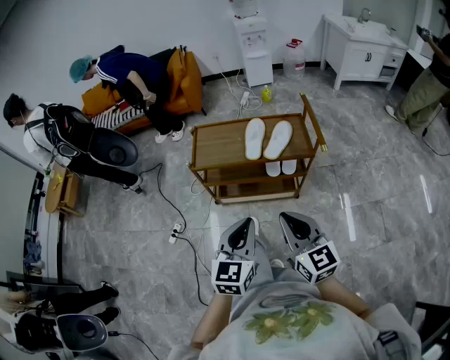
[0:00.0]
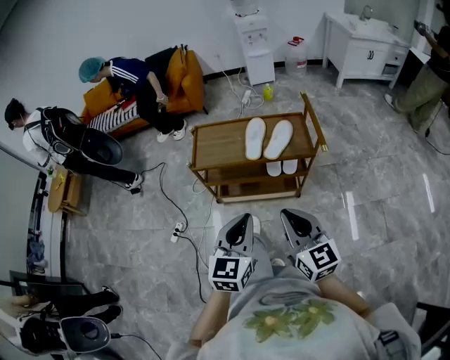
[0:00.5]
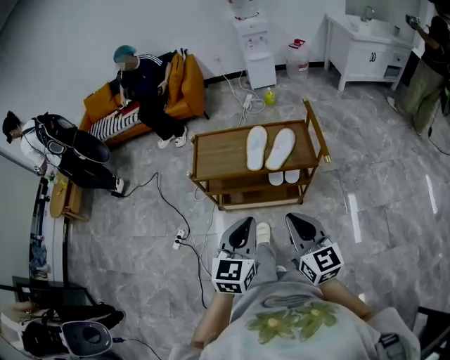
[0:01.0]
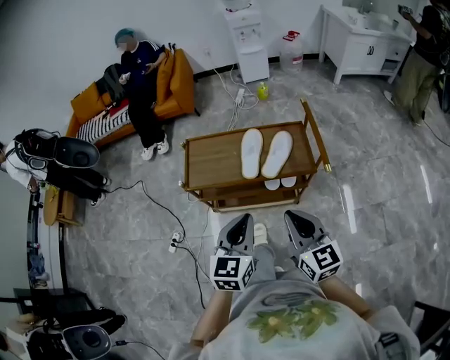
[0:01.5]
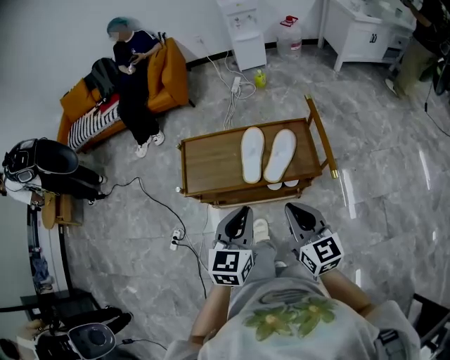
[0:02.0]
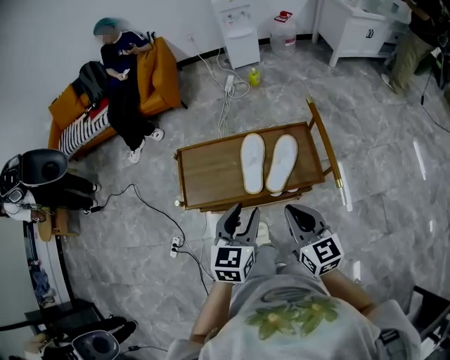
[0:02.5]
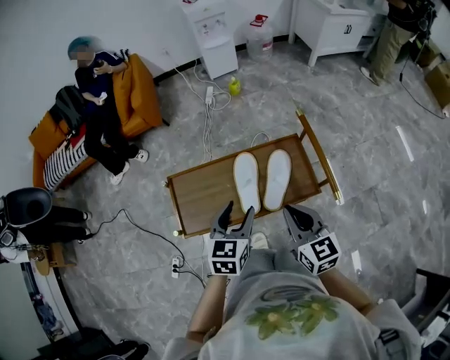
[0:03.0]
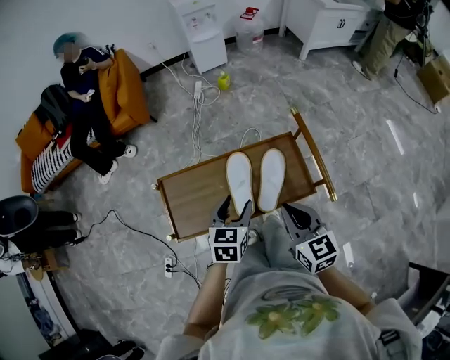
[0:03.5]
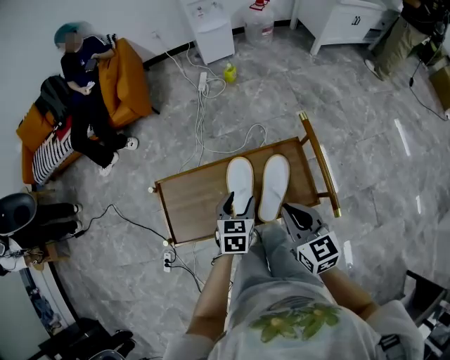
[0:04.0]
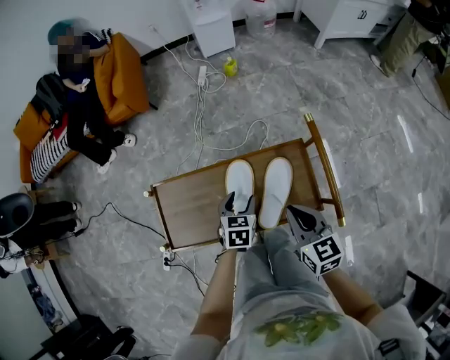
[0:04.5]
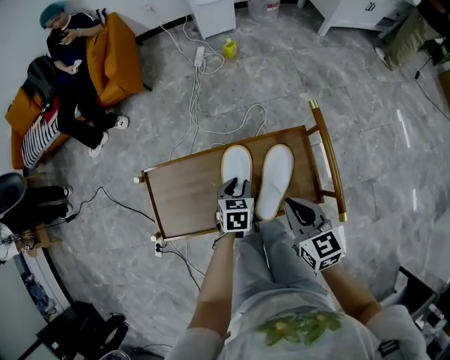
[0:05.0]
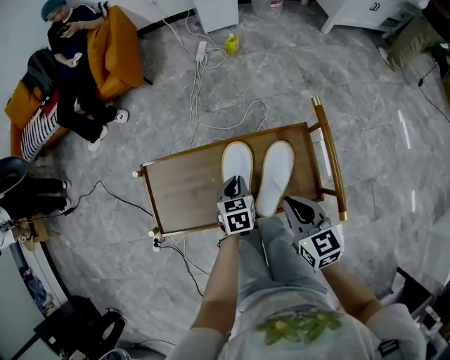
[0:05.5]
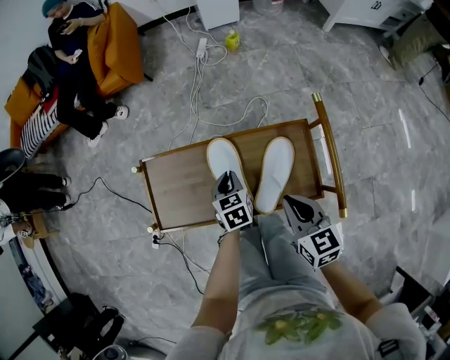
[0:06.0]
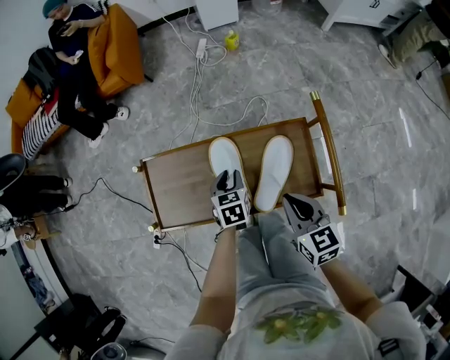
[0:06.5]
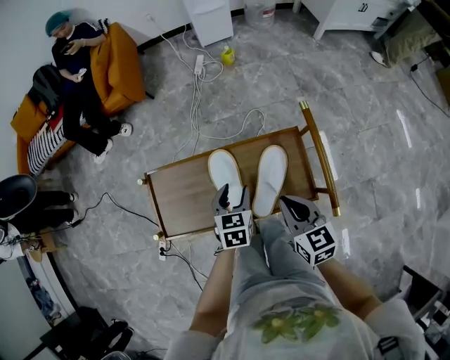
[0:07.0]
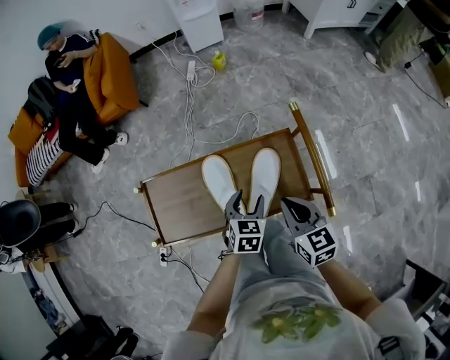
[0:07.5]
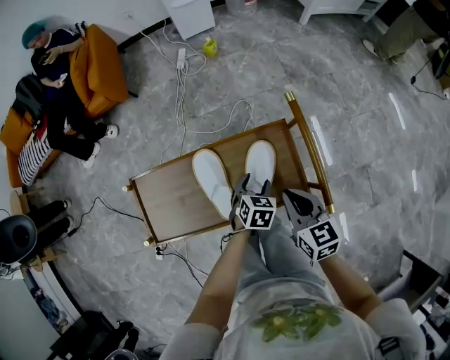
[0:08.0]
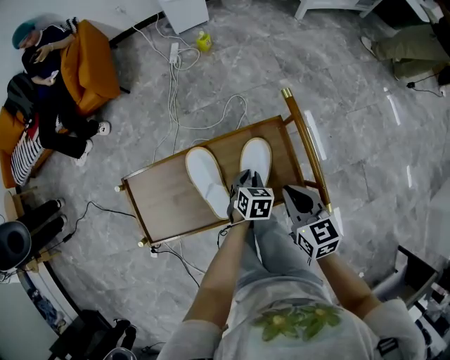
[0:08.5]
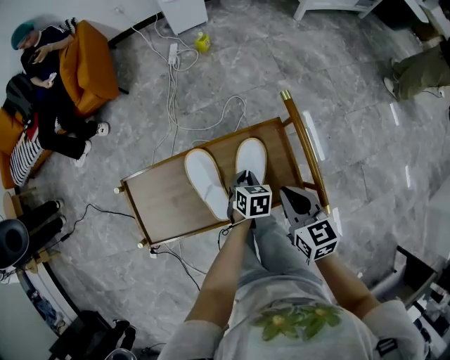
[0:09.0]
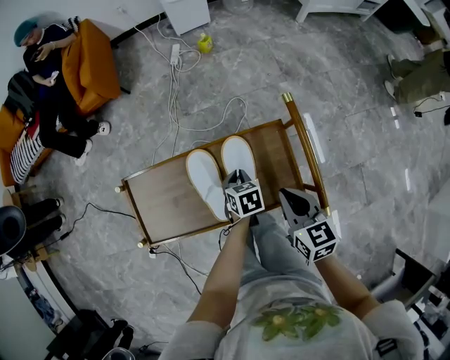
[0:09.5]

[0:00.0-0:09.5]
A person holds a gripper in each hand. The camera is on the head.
0.0 to 2.0 s: The grippers both shift forward by some 20 cm.
2.0 to 4.0 s: The left gripper shifts some 30 cm forward and downward, turns by some 20 degrees, and opens up. Meanwhile the right gripper shifts some 20 cm forward.
4.0 to 5.5 s: Both grippers travel together downward, some 10 cm. The left gripper closes.
5.5 to 7.5 s: The left gripper is displaced to the right and upward by about 10 cm, turns by about 20 degrees, and opens its fingers.
7.5 to 9.5 s: The left gripper is displaced downward and forward by about 10 cm, rotates approximately 30 degrees, and closes its fingers.

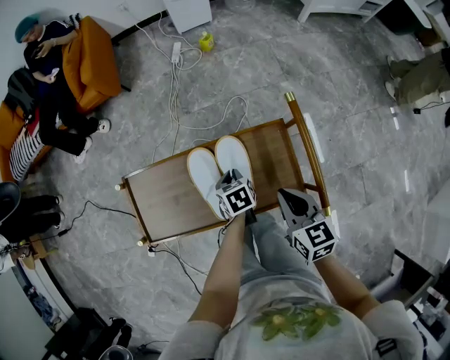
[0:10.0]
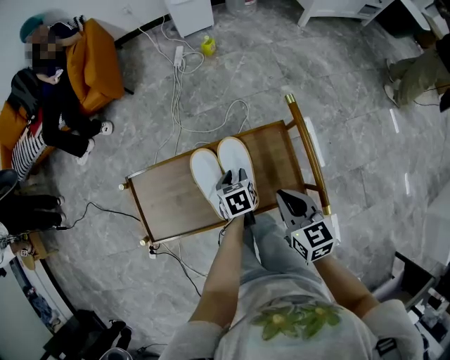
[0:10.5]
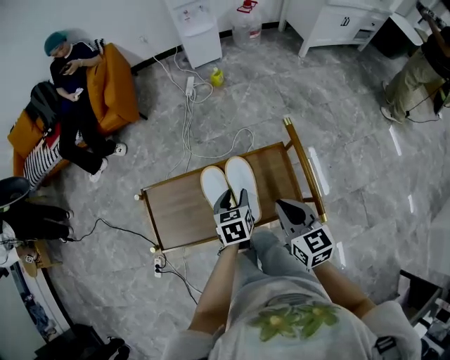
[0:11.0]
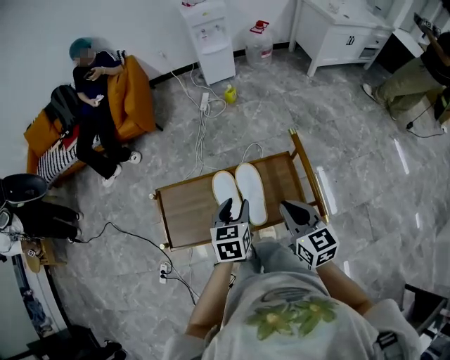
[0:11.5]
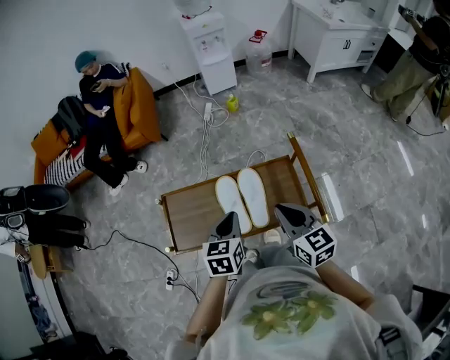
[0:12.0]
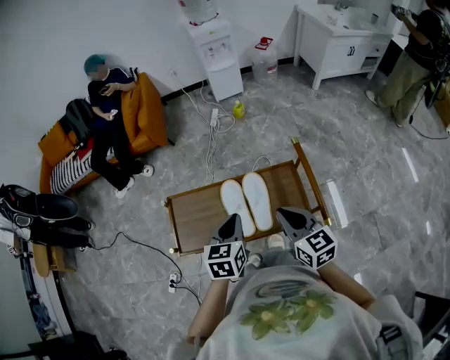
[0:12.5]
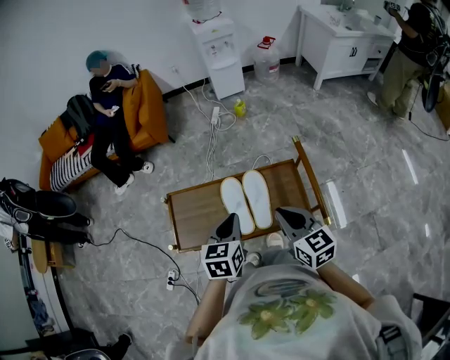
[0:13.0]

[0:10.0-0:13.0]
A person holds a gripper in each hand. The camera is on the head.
10.0 to 11.5 s: The right gripper goes roughly 10 cm upward; the left gripper shifts roughly 20 cm upward, turns by about 30 degrees, and opens up.
11.5 to 13.0 s: The left gripper goes approximately 5 cm upward, and closes.

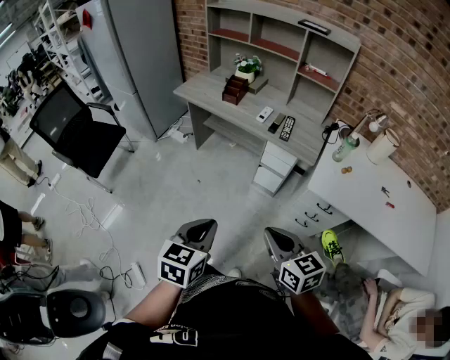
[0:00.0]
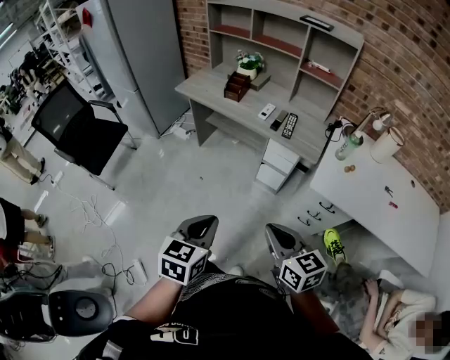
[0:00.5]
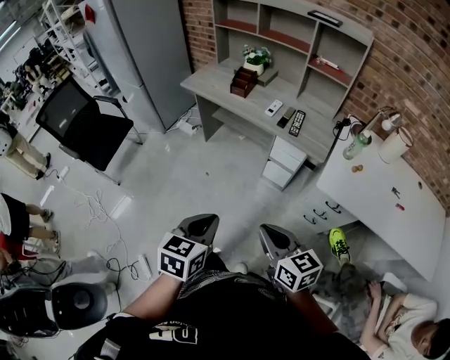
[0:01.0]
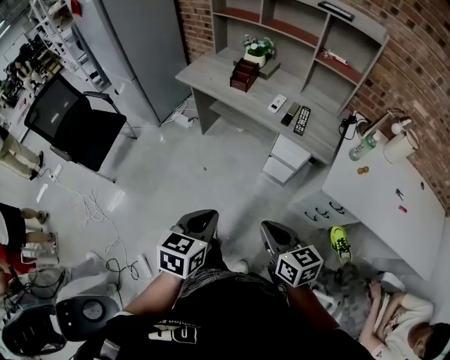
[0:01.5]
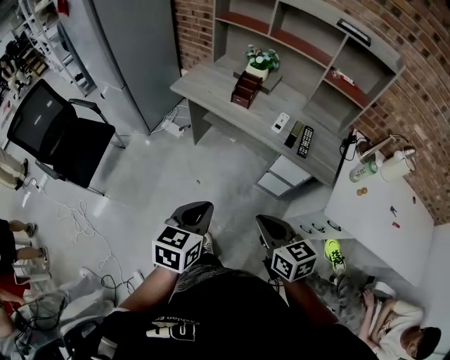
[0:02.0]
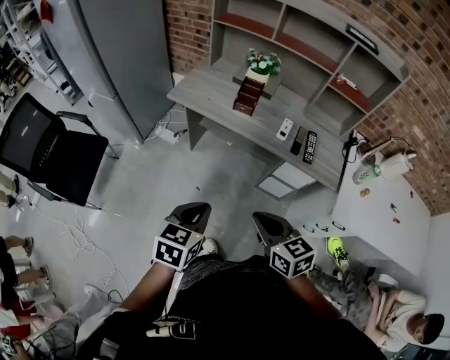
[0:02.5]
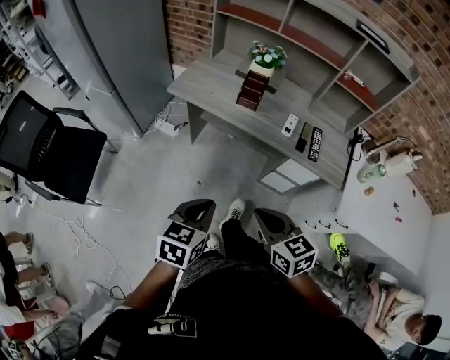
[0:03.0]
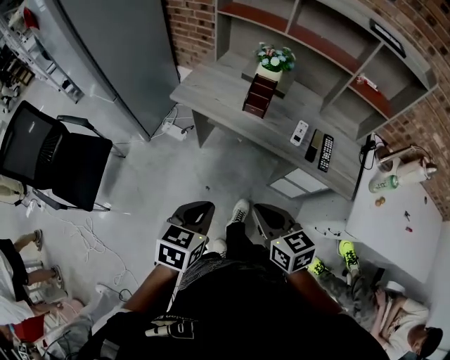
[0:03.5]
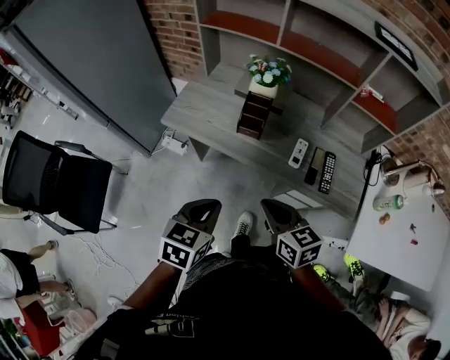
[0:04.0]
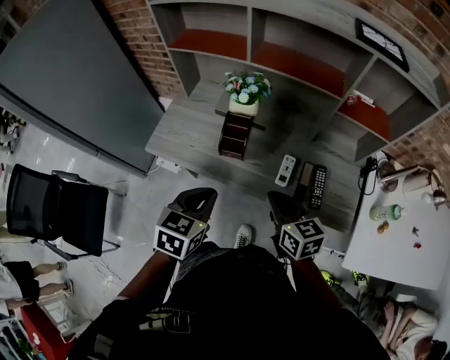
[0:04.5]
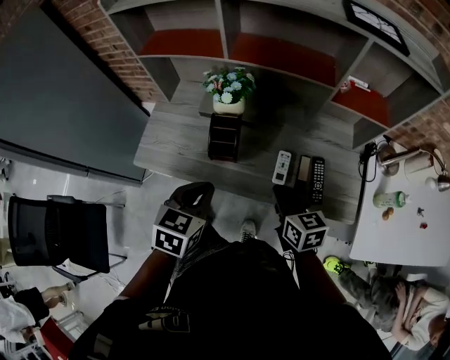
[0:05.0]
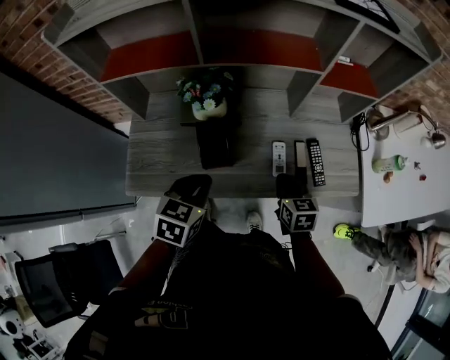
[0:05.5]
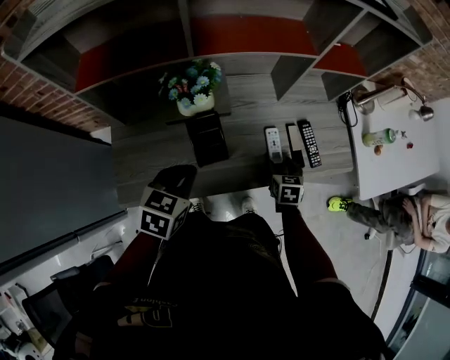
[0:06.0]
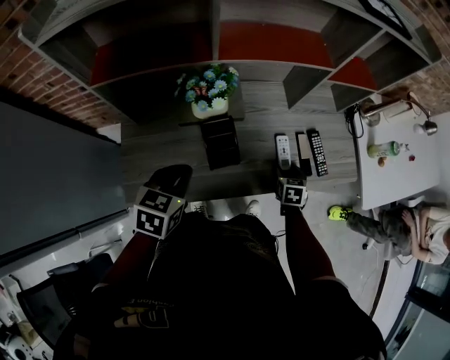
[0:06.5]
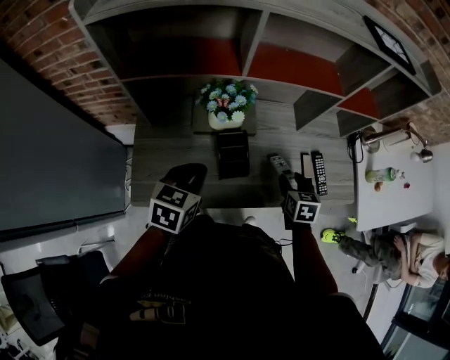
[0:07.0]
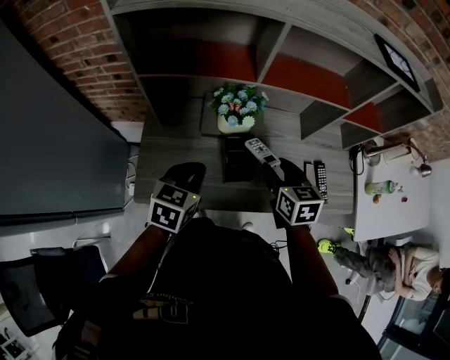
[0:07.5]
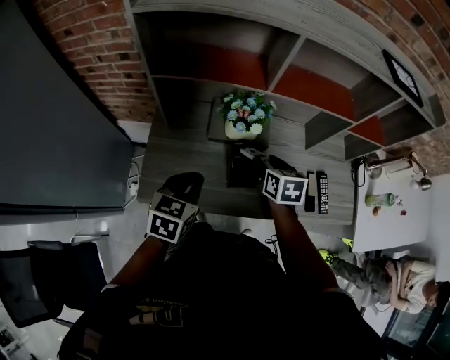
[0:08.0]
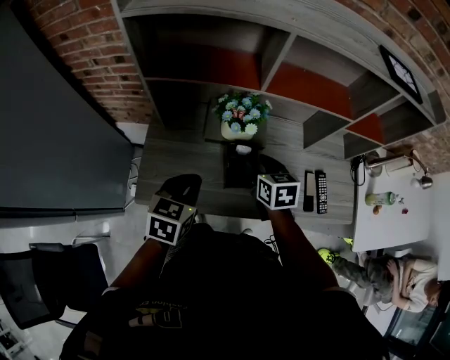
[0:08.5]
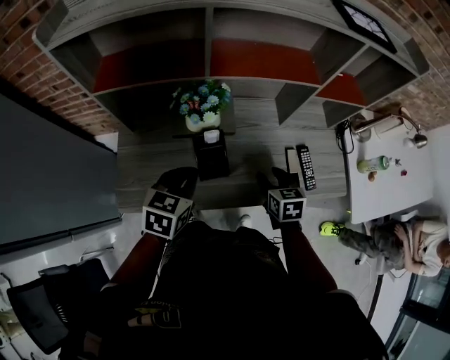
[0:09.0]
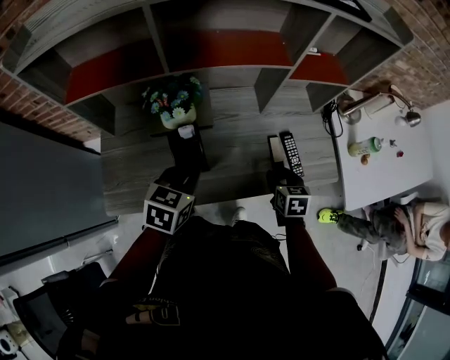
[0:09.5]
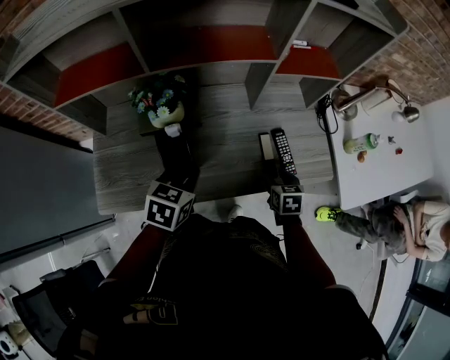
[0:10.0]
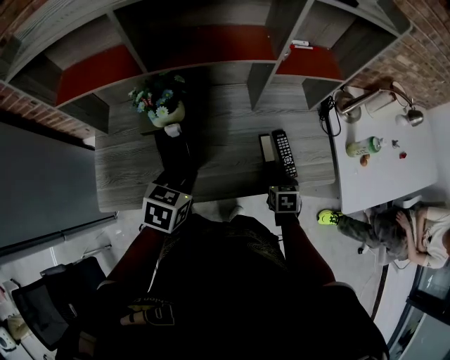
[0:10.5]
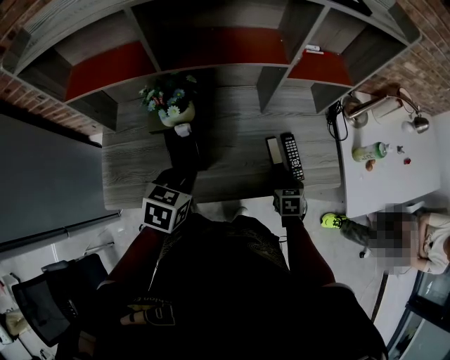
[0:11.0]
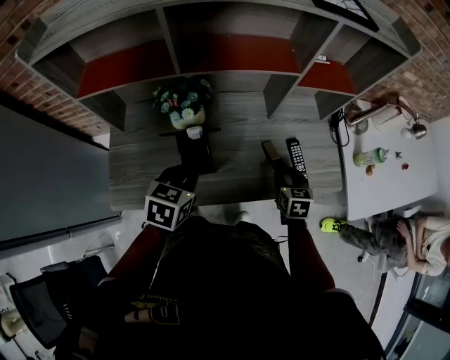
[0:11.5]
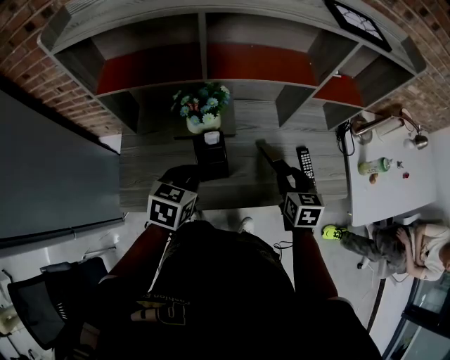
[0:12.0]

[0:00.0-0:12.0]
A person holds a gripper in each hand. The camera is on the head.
0.0 to 2.0 s: The right gripper travels forward and to the left by approximately 25 cm; the left gripper travels forward by about 20 cm.
2.0 to 4.0 s: The two grippers go approximately 25 cm forward.
4.0 to 6.0 s: The right gripper changes place by some 30 cm, rotates some 60 degrees, and opens up, while the left gripper shifts by roughly 30 cm, and changes its angle by roughly 30 degrees.
6.0 to 8.0 s: The left gripper goes about 10 cm to the left. Meanwhile the right gripper is displaced to the left and upward by roughly 25 cm.
8.0 to 10.0 s: The left gripper goes about 20 cm to the right; the right gripper heads to the right and downward, covering approximately 30 cm.
10.0 to 12.0 s: The right gripper moves upward and to the left, approximately 15 cm; the left gripper moves to the left, approximately 10 cm.

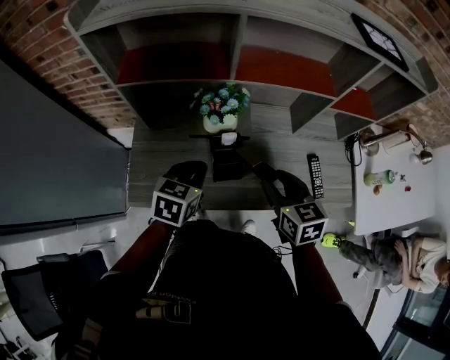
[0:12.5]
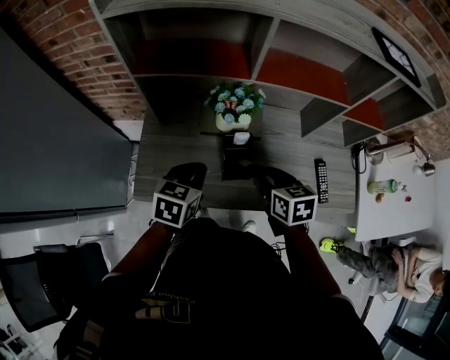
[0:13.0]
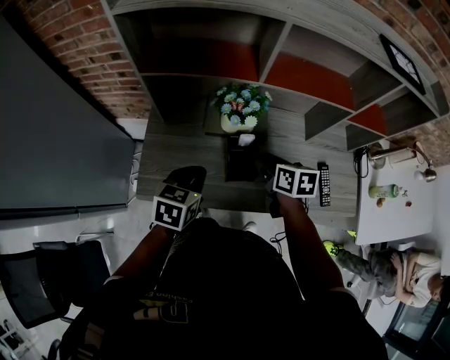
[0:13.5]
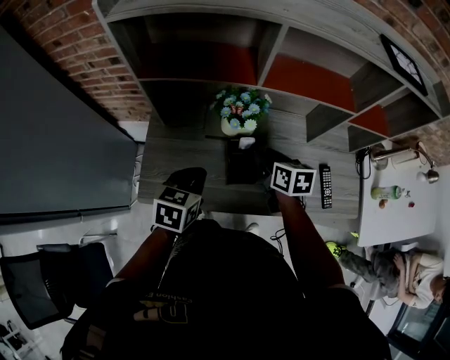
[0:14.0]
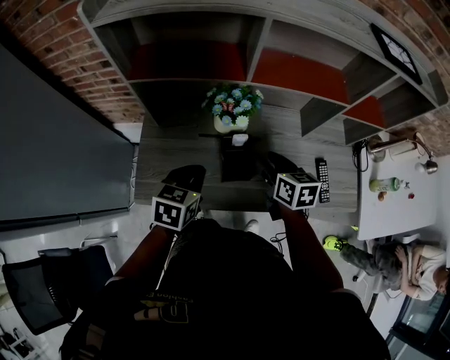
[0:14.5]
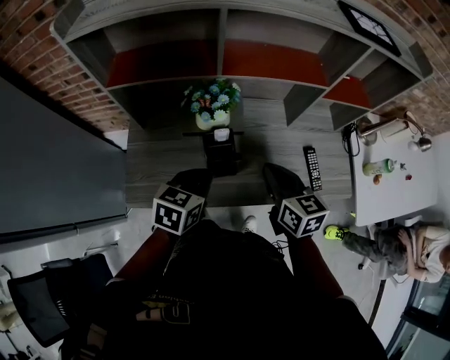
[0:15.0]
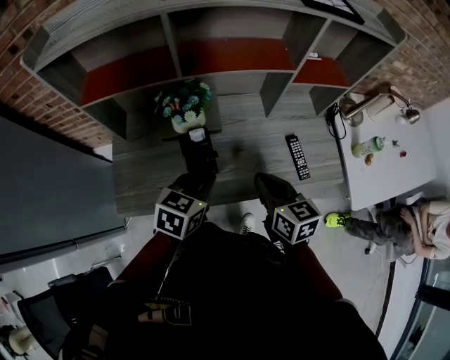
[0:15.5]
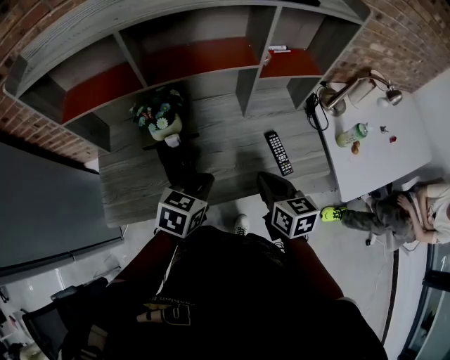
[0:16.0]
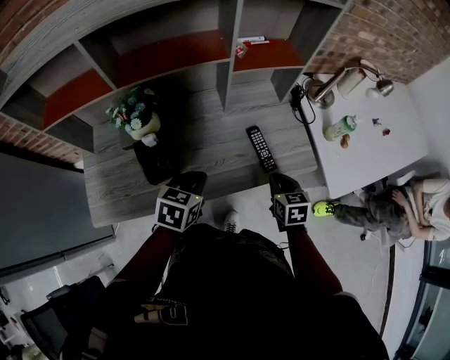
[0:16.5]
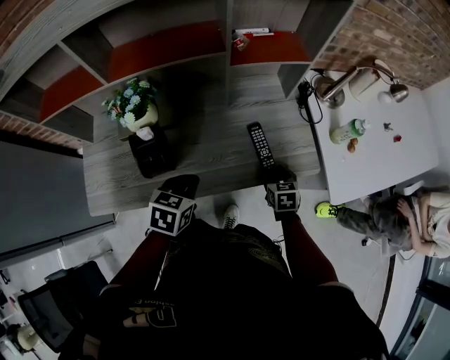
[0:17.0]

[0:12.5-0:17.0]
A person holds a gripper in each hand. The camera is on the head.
12.5 to 14.5 s: The right gripper heads forward, covering roughly 5 cm.
14.5 to 17.0 s: The left gripper moves to the right, some 25 cm; the right gripper shifts roughly 40 cm to the right and downward, changes its angle by approximately 20 degrees, and closes, then opens again.
